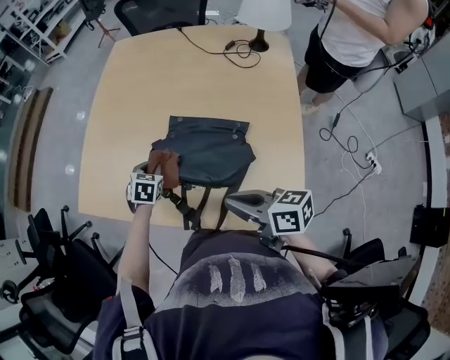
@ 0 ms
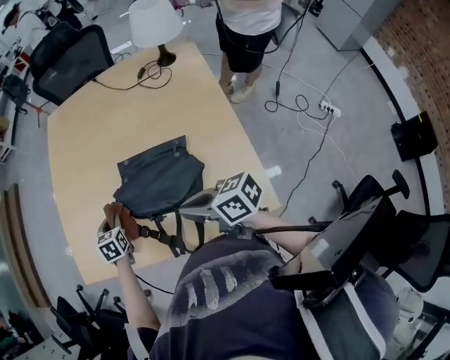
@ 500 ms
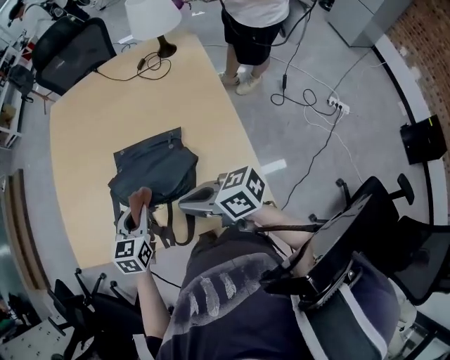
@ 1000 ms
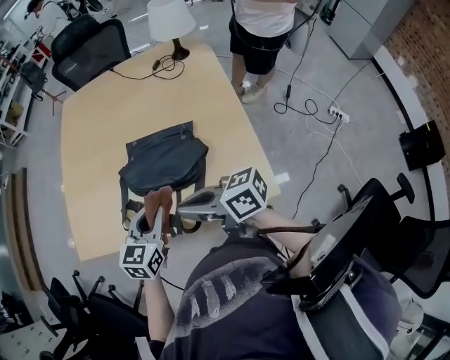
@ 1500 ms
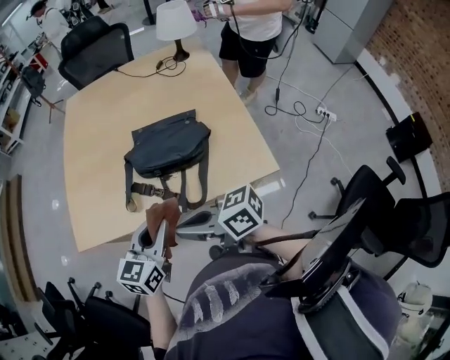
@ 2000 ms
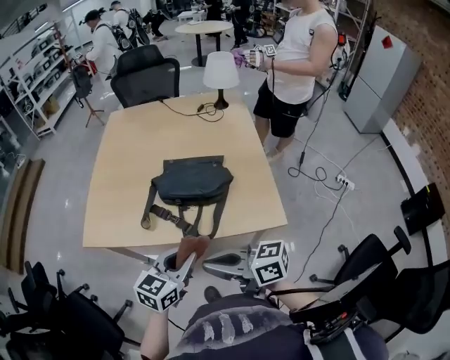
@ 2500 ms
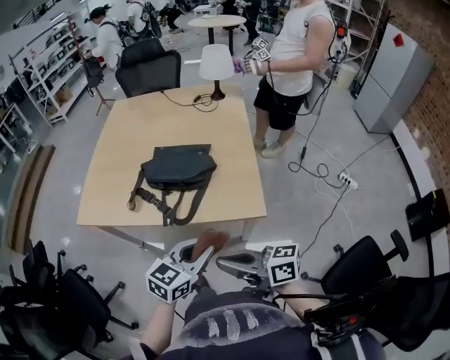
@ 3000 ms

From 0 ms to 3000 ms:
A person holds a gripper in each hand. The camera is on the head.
From 0 ms to 1500 ms: The right gripper travels to the left by about 5 cm. Meanwhile the left gripper heads backward and upward, covering roughly 25 cm, and turns by approximately 40 degrees.
From 1500 ms to 3000 ms: Both grippers travel together backward, approximately 25 cm.

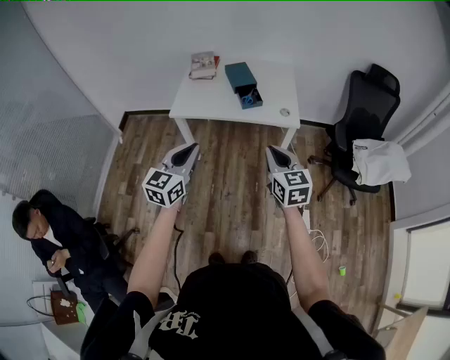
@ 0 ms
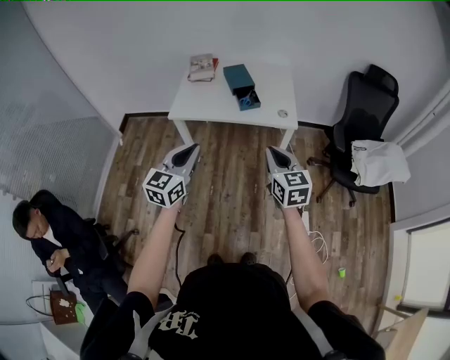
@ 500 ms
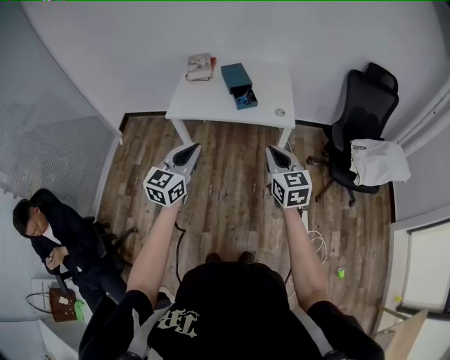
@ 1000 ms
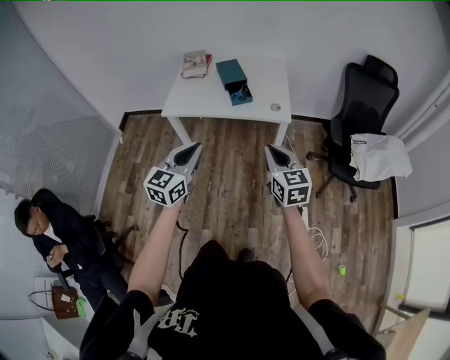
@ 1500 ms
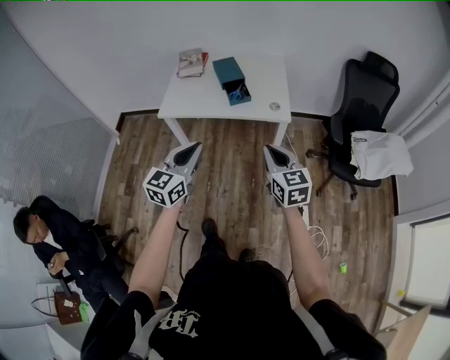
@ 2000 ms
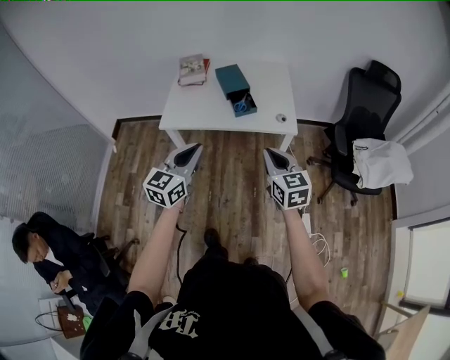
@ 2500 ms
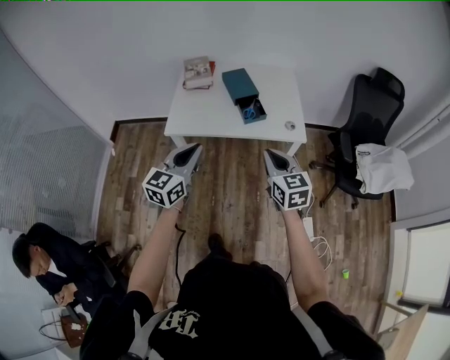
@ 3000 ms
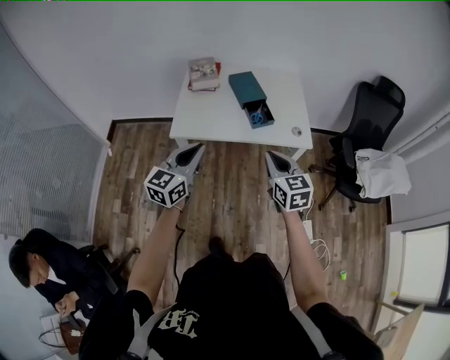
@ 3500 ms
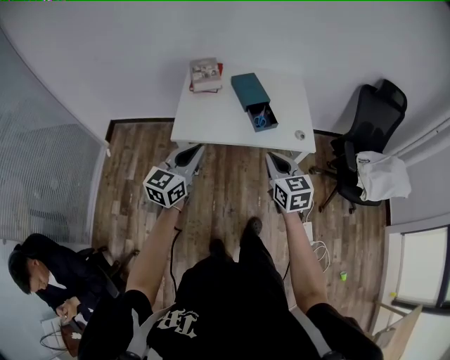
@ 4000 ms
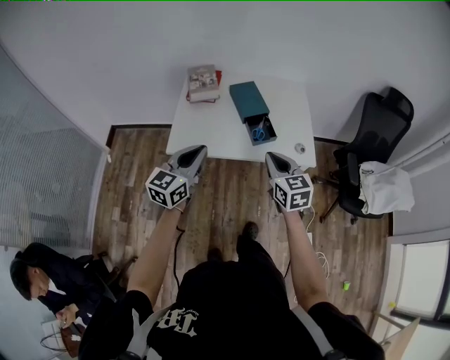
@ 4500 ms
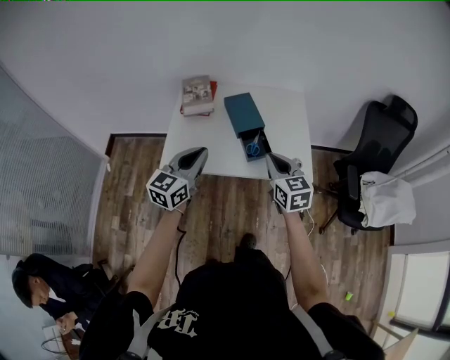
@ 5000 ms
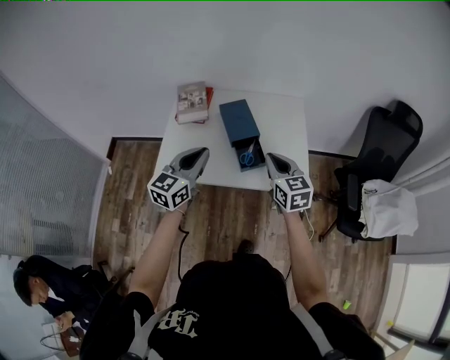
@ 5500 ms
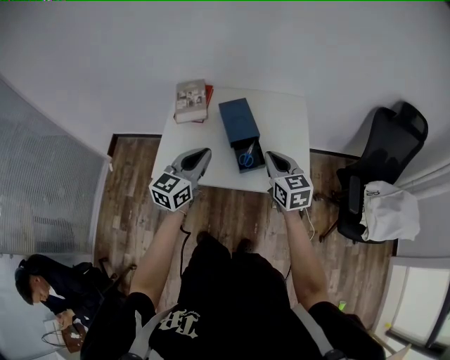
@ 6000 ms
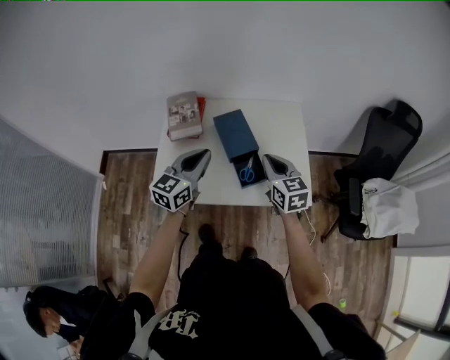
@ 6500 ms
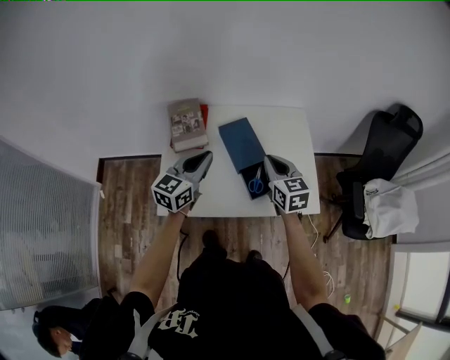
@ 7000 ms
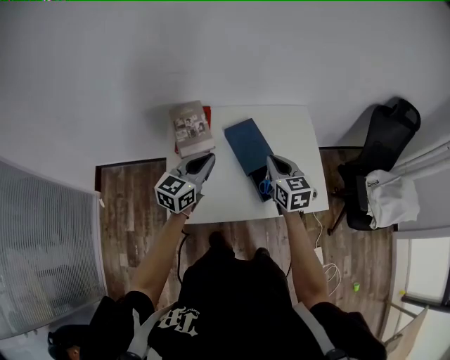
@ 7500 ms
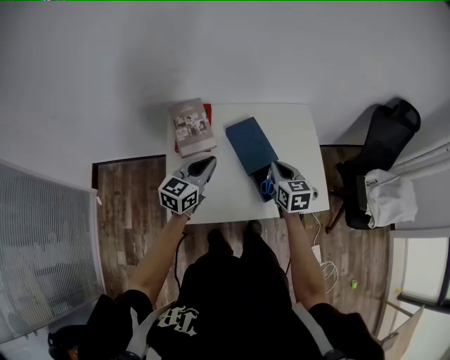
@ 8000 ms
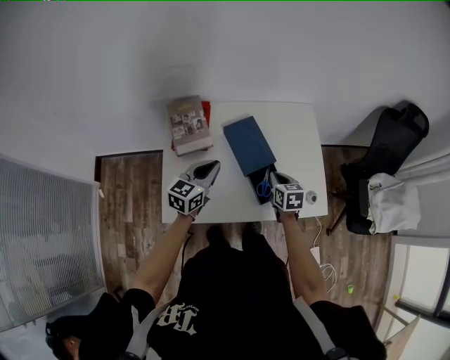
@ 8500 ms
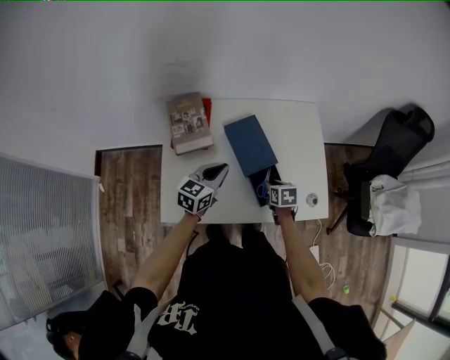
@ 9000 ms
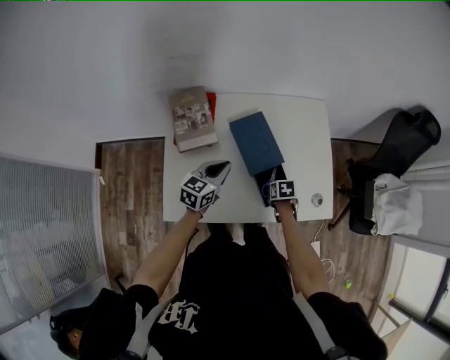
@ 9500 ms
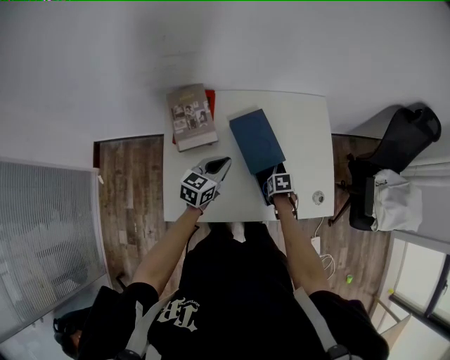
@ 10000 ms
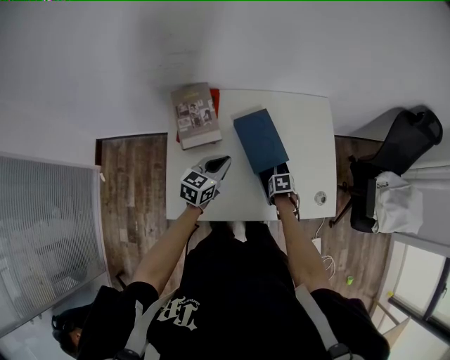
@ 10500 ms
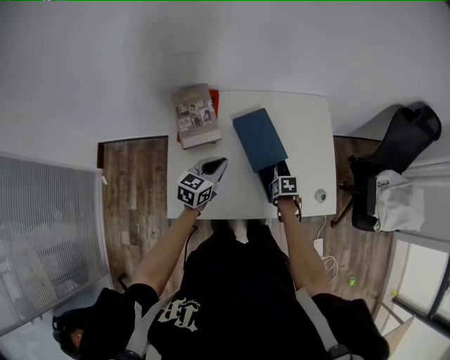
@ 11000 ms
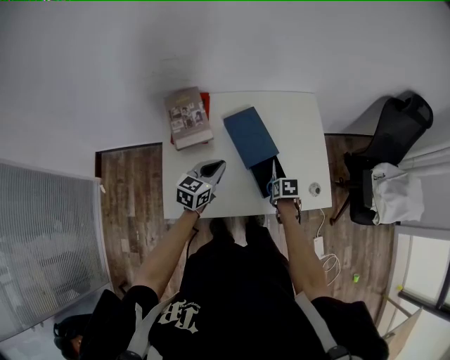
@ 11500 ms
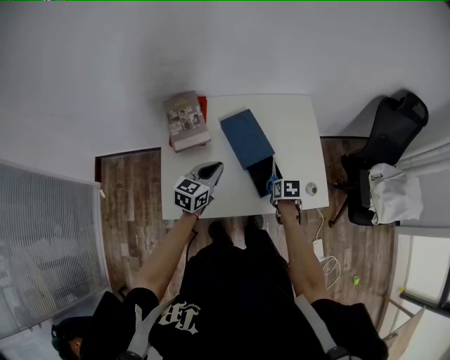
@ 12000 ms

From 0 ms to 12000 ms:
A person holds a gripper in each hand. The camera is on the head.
From 0 ms to 2000 ms: Both grippers move to the right, about 10 cm.
From 2000 ms to 4000 ms: Both grippers move to the left and forward, some 25 cm.
From 4000 ms to 6000 ms: The left gripper goes approximately 25 cm forward and to the right. The right gripper heads forward, covering roughly 25 cm.
From 6000 ms to 8000 ms: The grippers both shift forward, to the left and downward by about 20 cm. The right gripper swivels some 20 degrees.
From 8000 ms to 10000 ms: The left gripper goes about 10 cm downward. The right gripper is displaced downward by approximately 25 cm, angles its fingers downward, by about 50 degrees, and opens up.
From 10000 ms to 12000 ms: The left gripper ends up approximately 5 cm from where it was; the right gripper is displaced upward by approximately 5 cm.

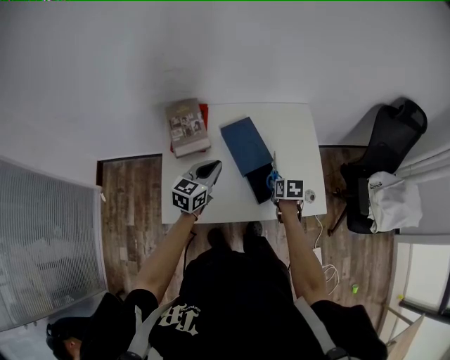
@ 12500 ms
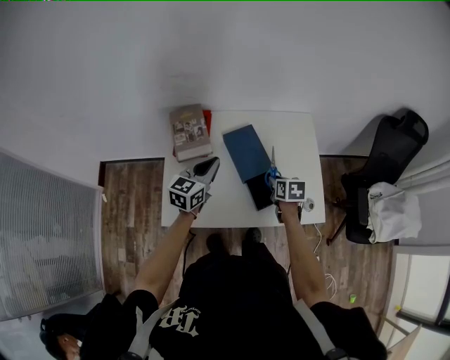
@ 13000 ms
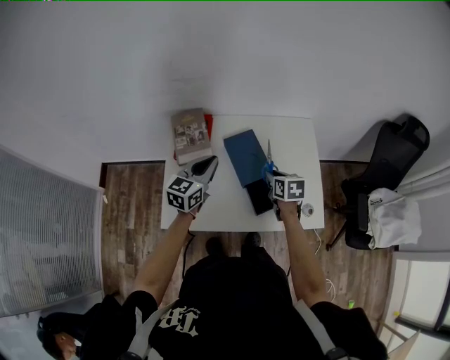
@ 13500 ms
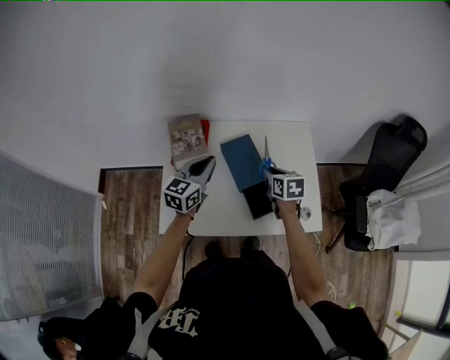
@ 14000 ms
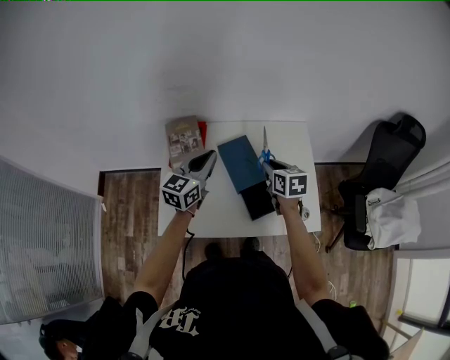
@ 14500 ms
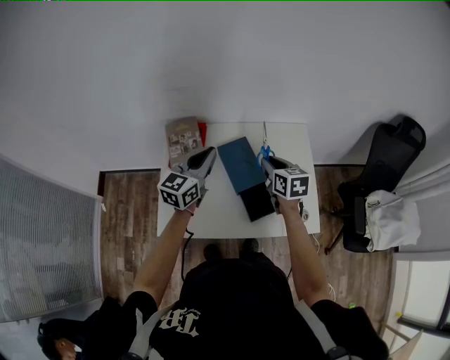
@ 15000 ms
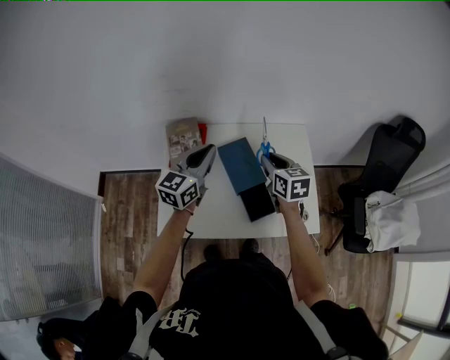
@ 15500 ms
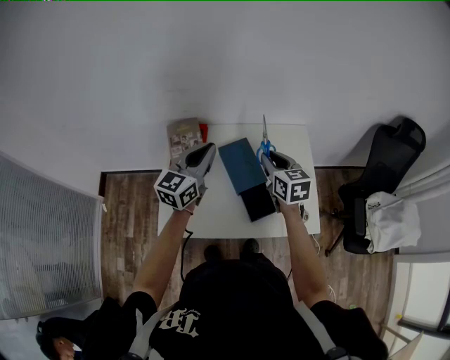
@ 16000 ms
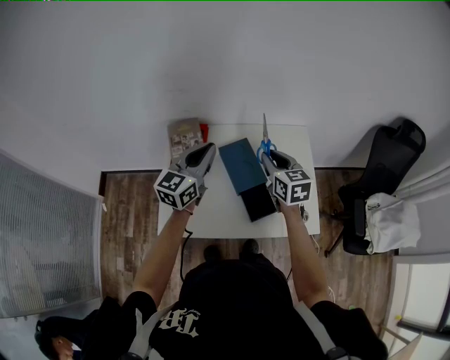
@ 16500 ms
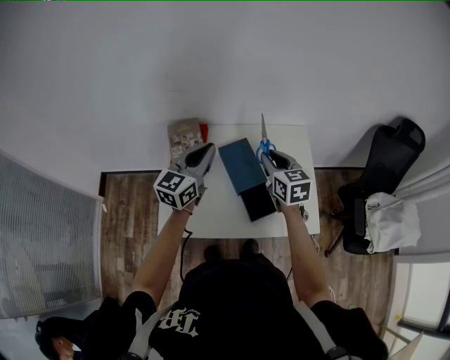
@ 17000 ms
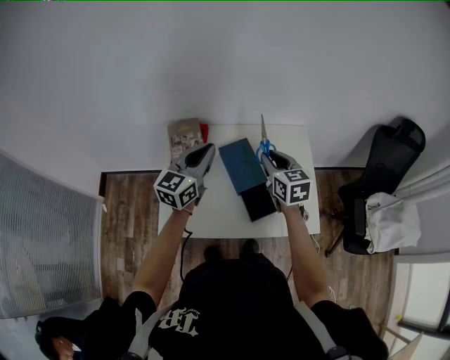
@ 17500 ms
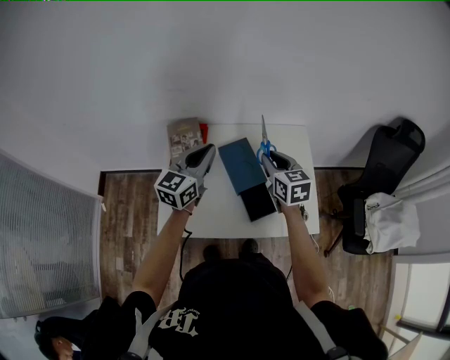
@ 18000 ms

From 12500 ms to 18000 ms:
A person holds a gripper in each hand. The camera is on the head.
From 12500 ms to 14500 ms: The right gripper travels upward and forward by some 20 cm, and swivels roughly 30 degrees. The left gripper goes about 10 cm upward and forward.
From 14500 ms to 16000 ms: Both grippers travel together upward, approximately 5 cm.
From 16000 ms to 18000 ms: Neither gripper changes place.

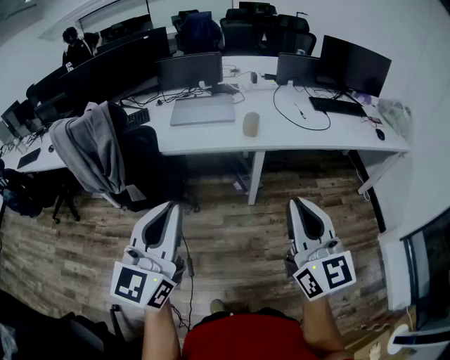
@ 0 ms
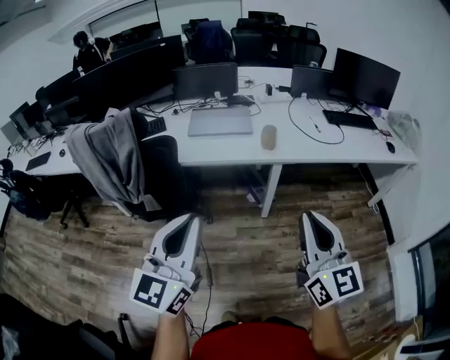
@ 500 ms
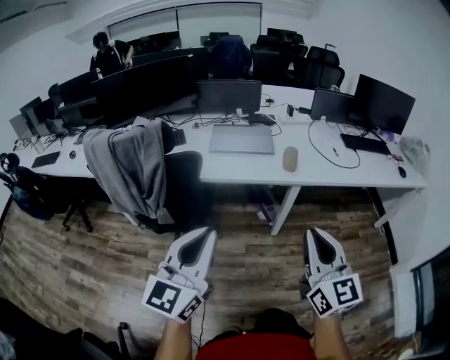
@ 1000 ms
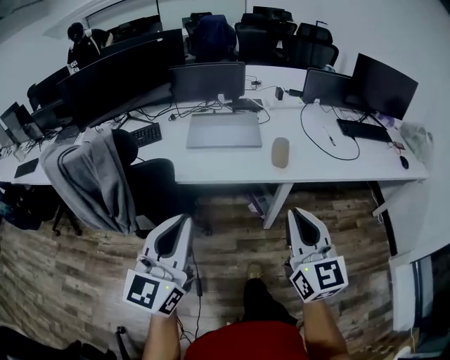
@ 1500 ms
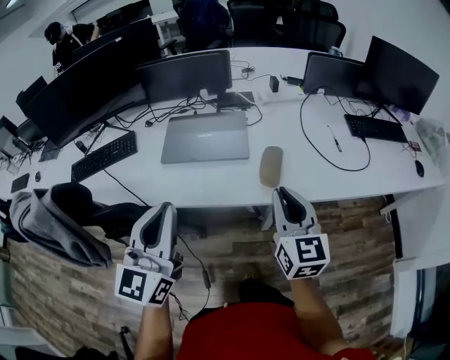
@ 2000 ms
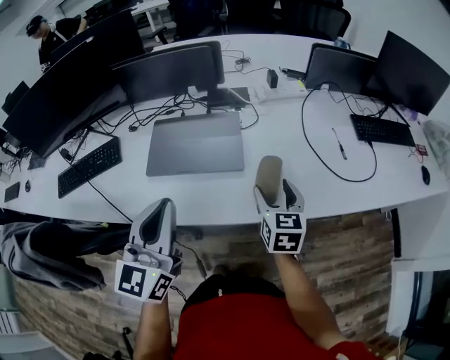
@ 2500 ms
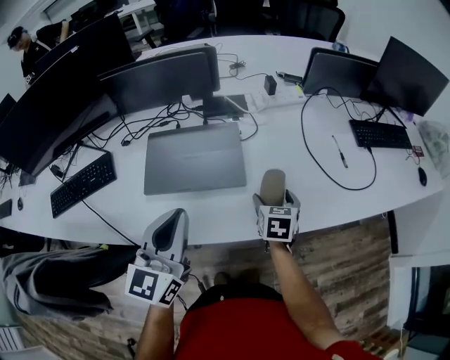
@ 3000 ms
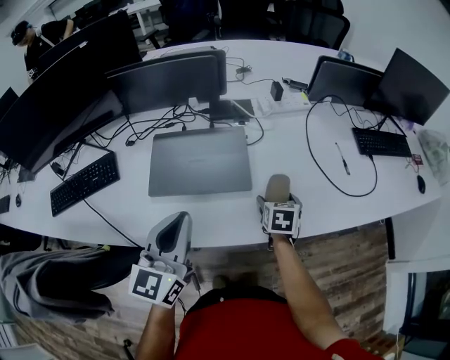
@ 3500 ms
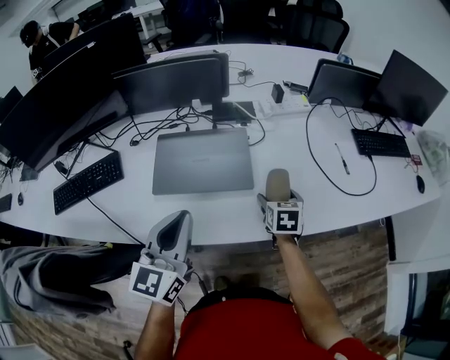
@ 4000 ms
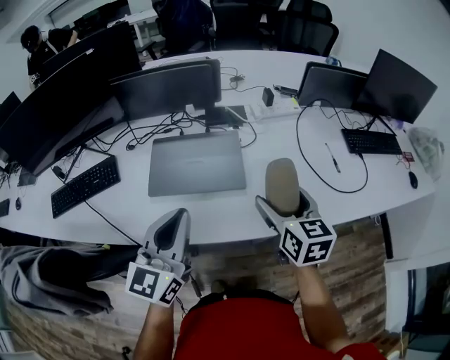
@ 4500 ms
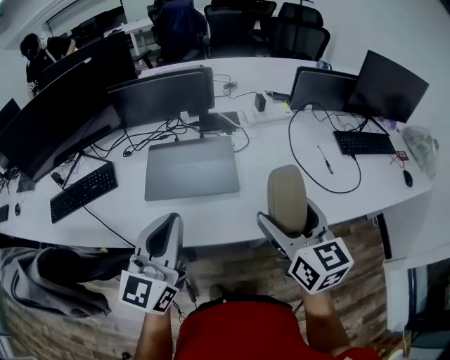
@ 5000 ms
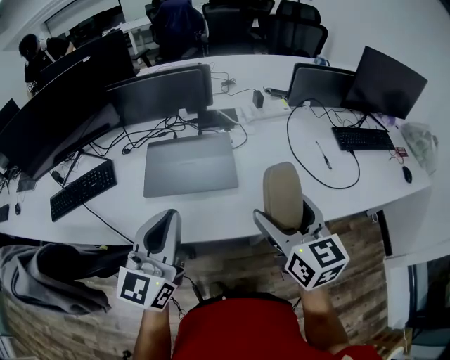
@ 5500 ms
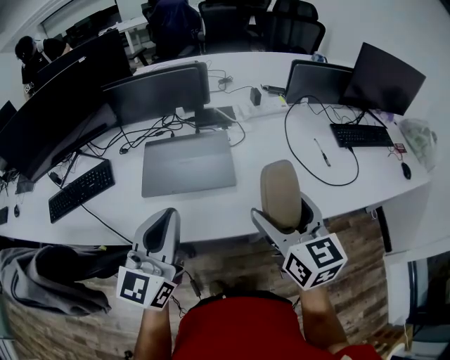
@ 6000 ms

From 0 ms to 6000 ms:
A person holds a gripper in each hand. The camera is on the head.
From 0 ms to 2000 ms: Both grippers move forward, some 40 cm.
From 2000 ms to 4000 ms: The right gripper goes about 30 cm downward and forward, tilts its fingers some 40 degrees downward, and opens its fingers. The left gripper moves forward and downward, some 20 cm.
From 4000 ms to 6000 ms: The right gripper moves upward and backward, some 25 cm, and tips its fingers upward by roughly 30 degrees. The left gripper moves upward, some 5 cm.
